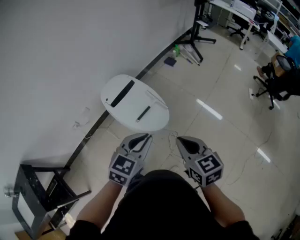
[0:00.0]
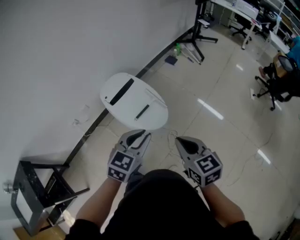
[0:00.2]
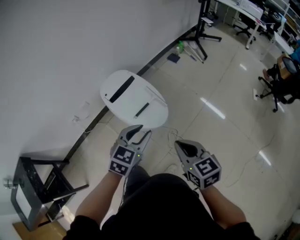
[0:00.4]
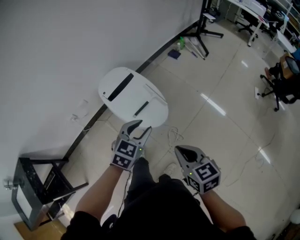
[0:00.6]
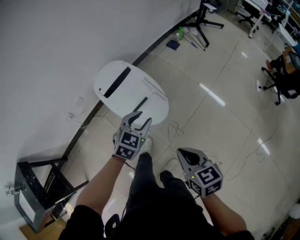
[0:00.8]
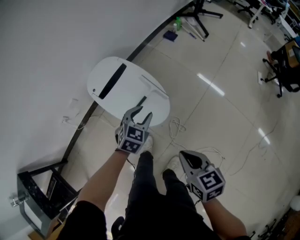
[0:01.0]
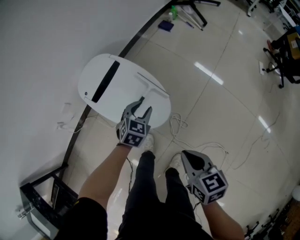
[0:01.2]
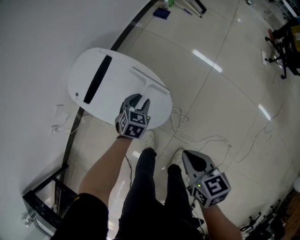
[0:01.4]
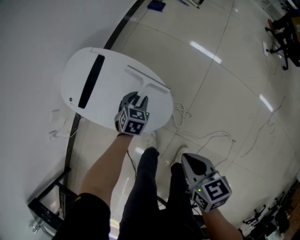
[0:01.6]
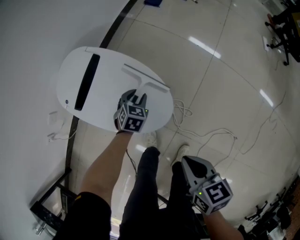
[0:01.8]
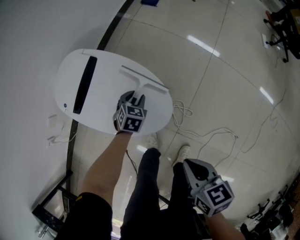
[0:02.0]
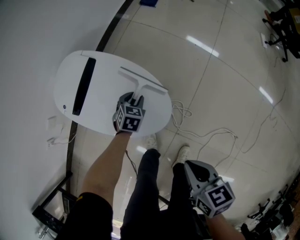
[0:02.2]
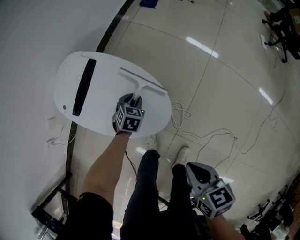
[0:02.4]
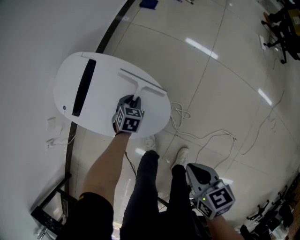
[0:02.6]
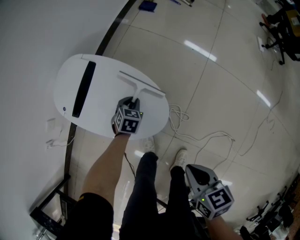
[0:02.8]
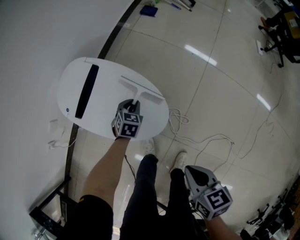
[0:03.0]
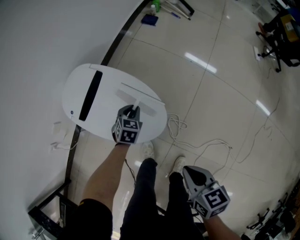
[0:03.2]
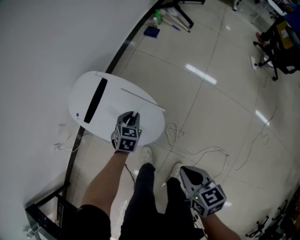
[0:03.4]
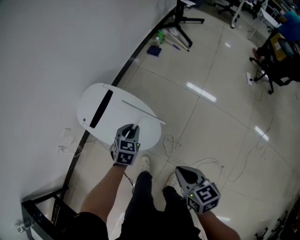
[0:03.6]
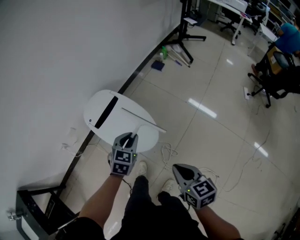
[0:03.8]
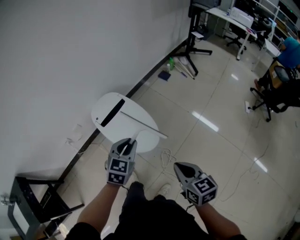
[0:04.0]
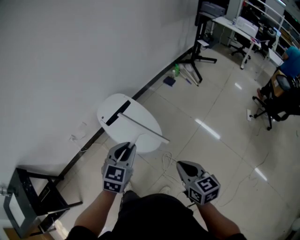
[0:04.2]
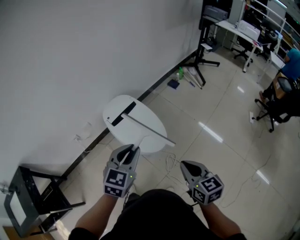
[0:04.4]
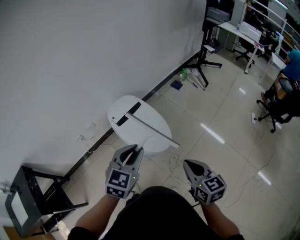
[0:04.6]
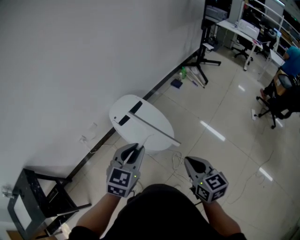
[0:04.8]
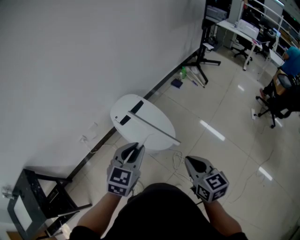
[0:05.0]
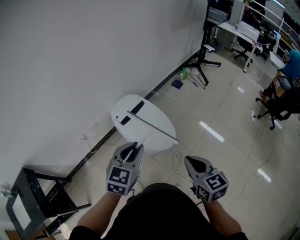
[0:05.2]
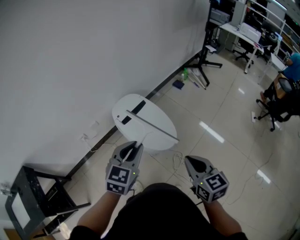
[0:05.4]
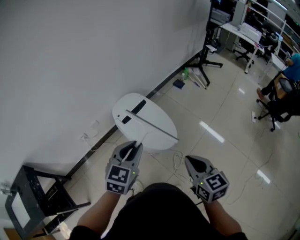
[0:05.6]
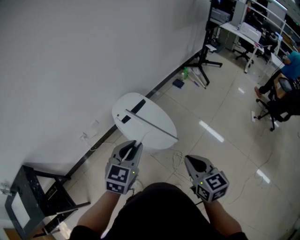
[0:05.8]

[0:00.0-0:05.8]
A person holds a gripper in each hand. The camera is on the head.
0:00.0 to 0:01.4: The left gripper goes some 50 cm downward and forward, rotates some 20 degrees, and opens up; the right gripper moves downward and forward, about 25 cm, and changes its angle by some 30 degrees.
0:01.4 to 0:02.8: The left gripper goes about 10 cm downward, while the right gripper heads downward, covering about 5 cm.
0:02.8 to 0:04.4: The left gripper goes approximately 60 cm upward and backward, and tips its fingers upward by approximately 30 degrees. The right gripper travels upward by approximately 25 cm, and changes its angle by roughly 30 degrees.
0:04.4 to 0:05.8: The two grippers go roughly 10 cm to the left.

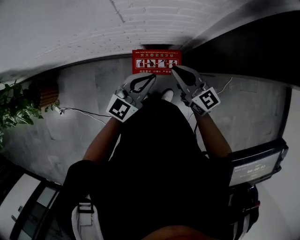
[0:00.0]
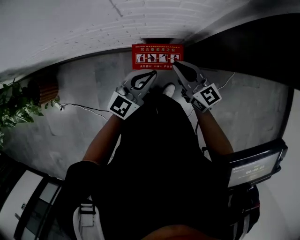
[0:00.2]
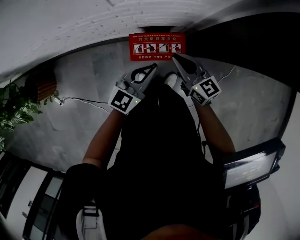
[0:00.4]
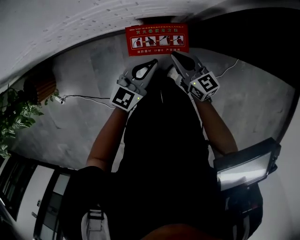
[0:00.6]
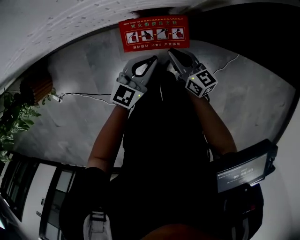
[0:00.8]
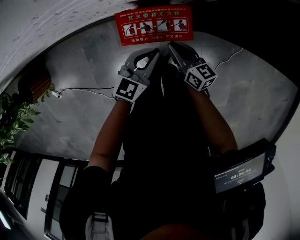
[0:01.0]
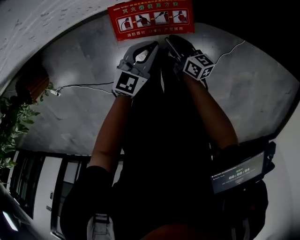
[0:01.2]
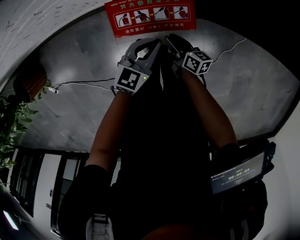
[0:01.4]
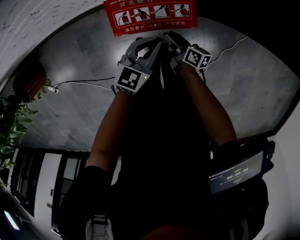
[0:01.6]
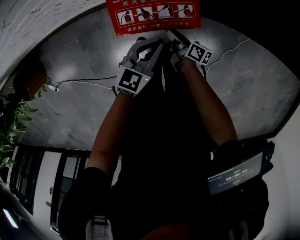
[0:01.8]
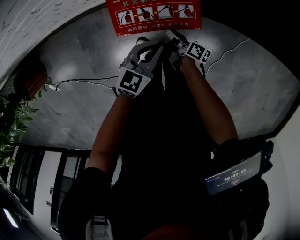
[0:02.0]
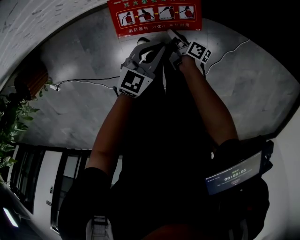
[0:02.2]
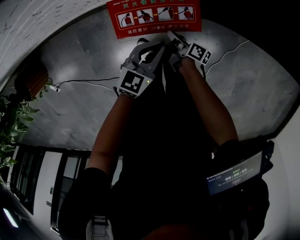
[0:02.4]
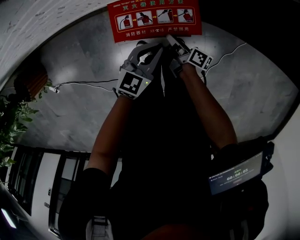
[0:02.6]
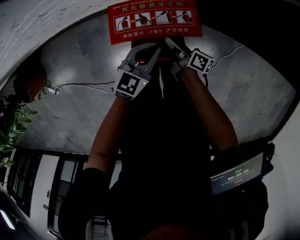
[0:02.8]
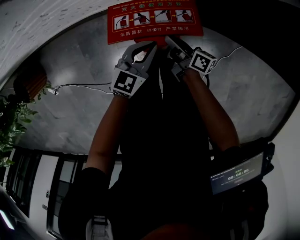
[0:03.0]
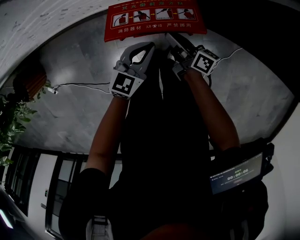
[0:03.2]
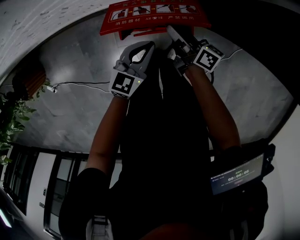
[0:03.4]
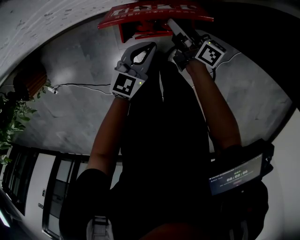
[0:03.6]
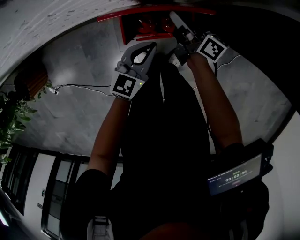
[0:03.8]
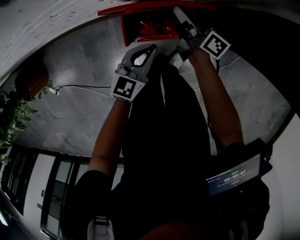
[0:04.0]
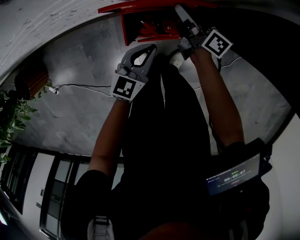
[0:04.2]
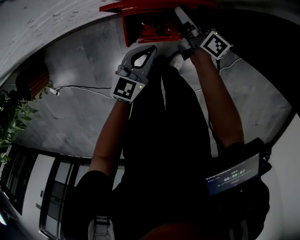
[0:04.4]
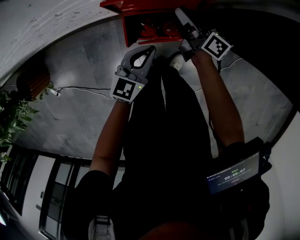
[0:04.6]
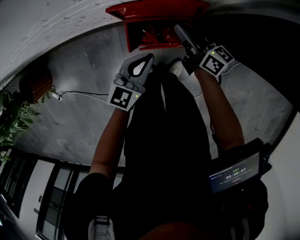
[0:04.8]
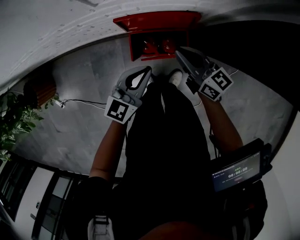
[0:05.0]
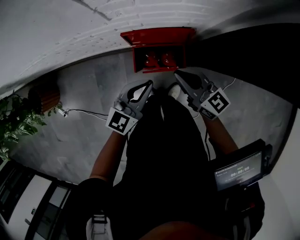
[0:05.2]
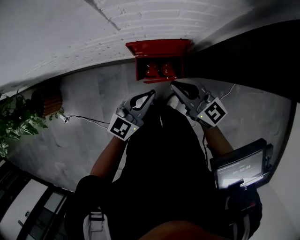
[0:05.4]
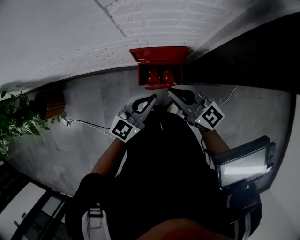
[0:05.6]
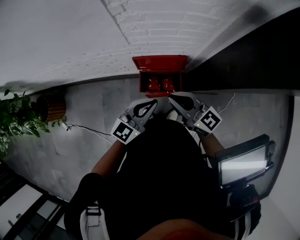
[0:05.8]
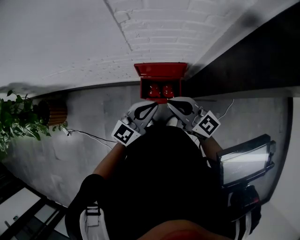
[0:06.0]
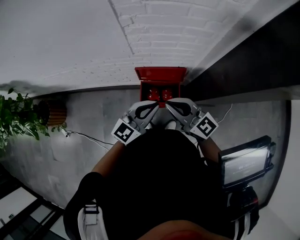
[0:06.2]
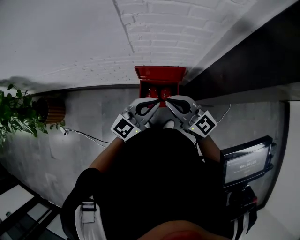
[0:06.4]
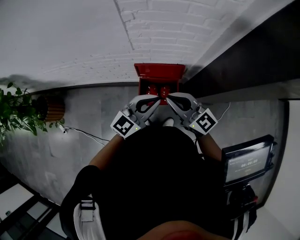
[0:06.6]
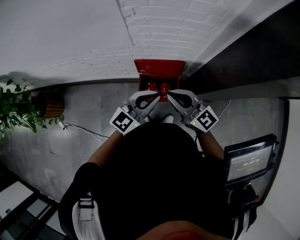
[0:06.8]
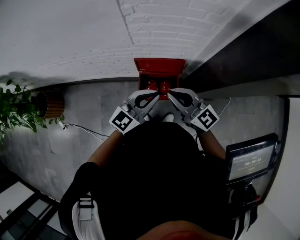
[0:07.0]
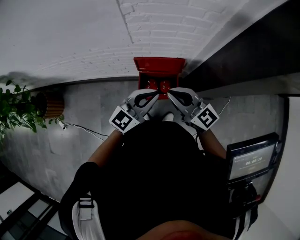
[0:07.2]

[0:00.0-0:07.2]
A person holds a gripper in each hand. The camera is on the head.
0:00.0 to 0:01.4: The grippers both shift downward by about 40 cm. The right gripper rotates around the line of its fingers by approximately 40 degrees, clockwise from behind, and opens up.
0:01.4 to 0:02.8: The right gripper travels downward and back again, some 5 cm each way, and turns by roughly 20 degrees.
0:02.8 to 0:04.4: The right gripper shifts approximately 20 cm forward and upward, swivels some 20 degrees, and opens its fingers. The left gripper moves some 5 cm.
0:04.4 to 0:05.8: The left gripper goes roughly 35 cm upward; the right gripper shifts roughly 40 cm upward and backward, twists roughly 50 degrees counterclockwise, seen from behind, and closes.
0:05.8 to 0:07.2: The grippers stay close to where they were, moving slightly.

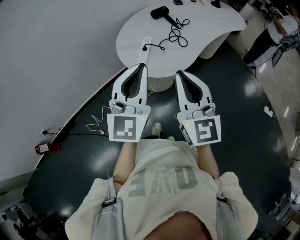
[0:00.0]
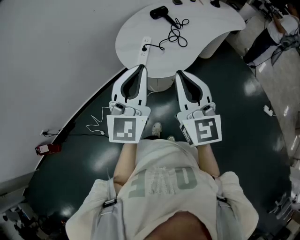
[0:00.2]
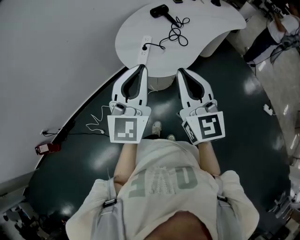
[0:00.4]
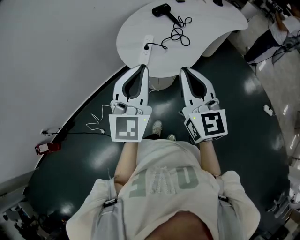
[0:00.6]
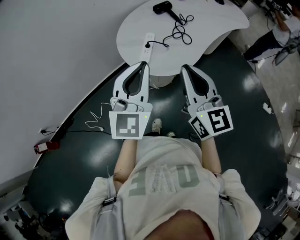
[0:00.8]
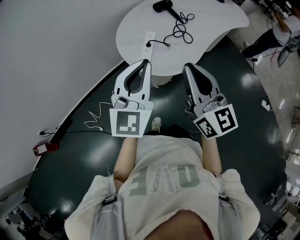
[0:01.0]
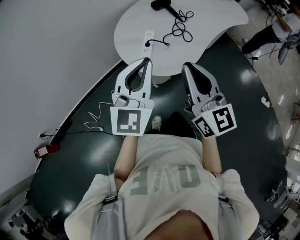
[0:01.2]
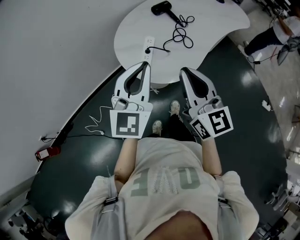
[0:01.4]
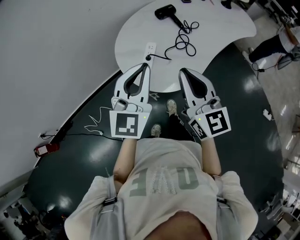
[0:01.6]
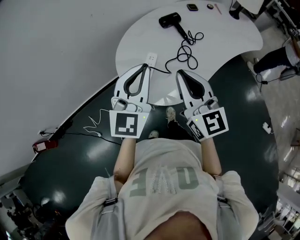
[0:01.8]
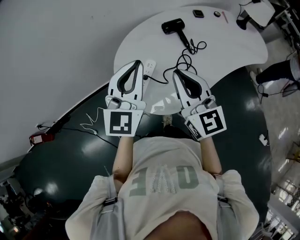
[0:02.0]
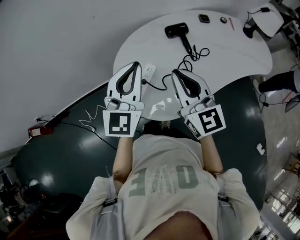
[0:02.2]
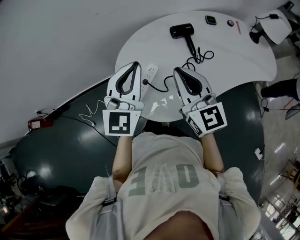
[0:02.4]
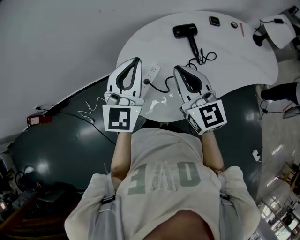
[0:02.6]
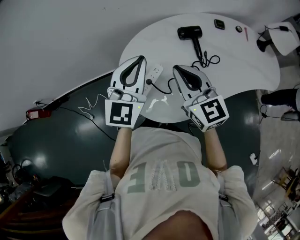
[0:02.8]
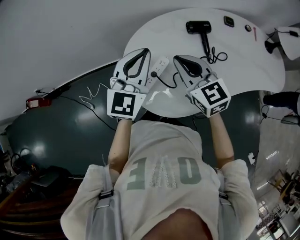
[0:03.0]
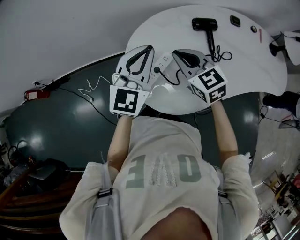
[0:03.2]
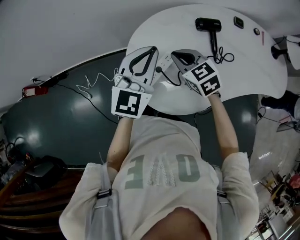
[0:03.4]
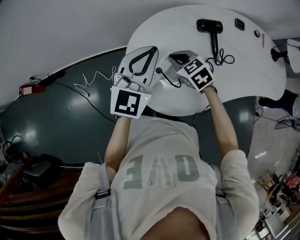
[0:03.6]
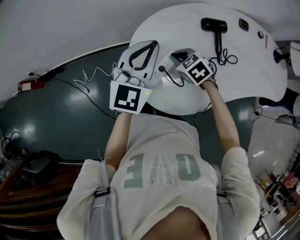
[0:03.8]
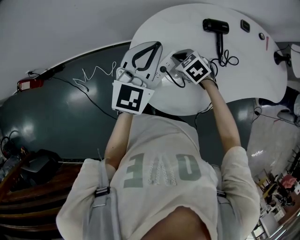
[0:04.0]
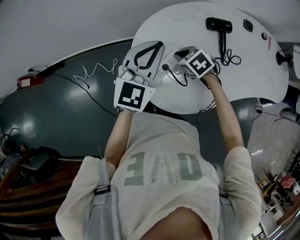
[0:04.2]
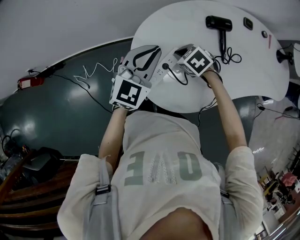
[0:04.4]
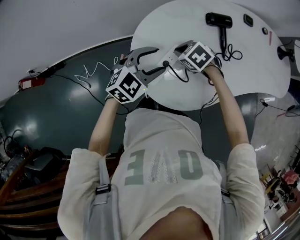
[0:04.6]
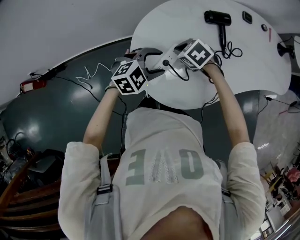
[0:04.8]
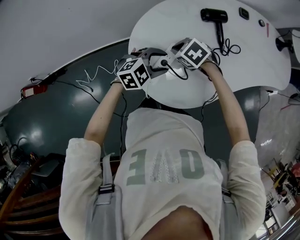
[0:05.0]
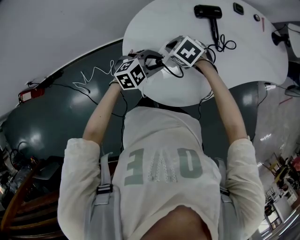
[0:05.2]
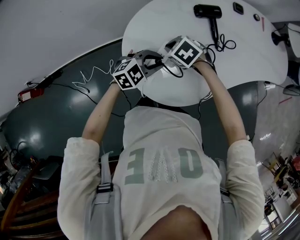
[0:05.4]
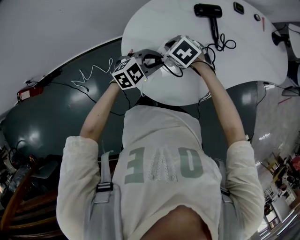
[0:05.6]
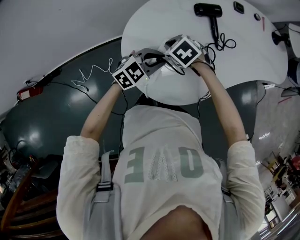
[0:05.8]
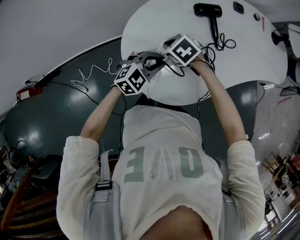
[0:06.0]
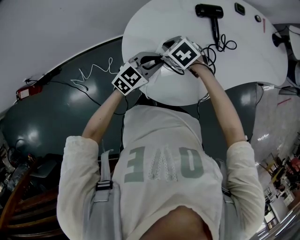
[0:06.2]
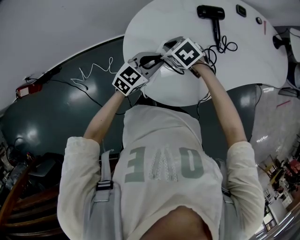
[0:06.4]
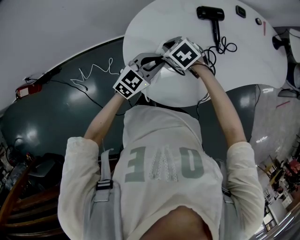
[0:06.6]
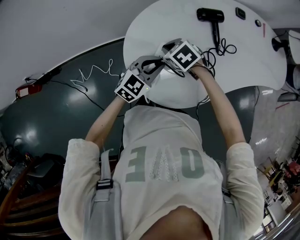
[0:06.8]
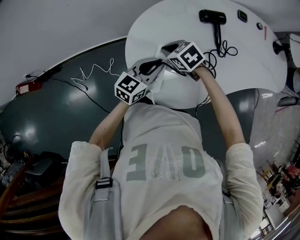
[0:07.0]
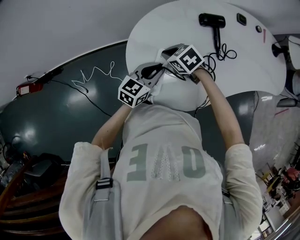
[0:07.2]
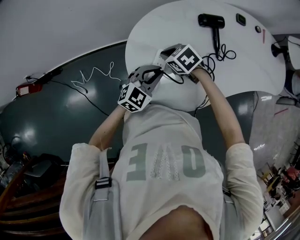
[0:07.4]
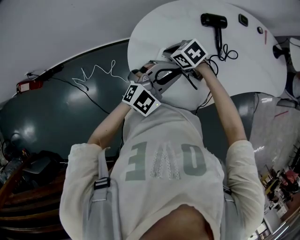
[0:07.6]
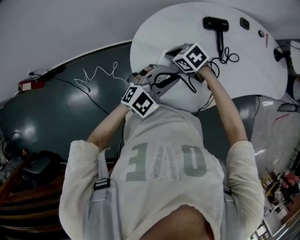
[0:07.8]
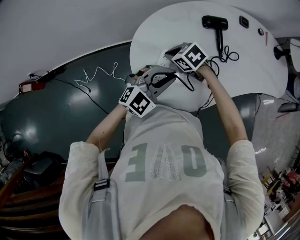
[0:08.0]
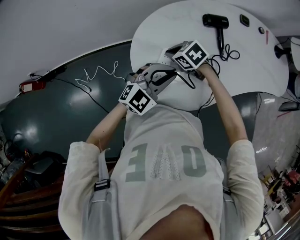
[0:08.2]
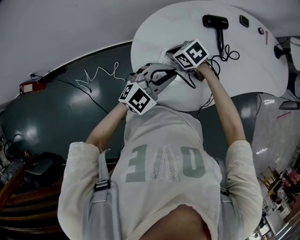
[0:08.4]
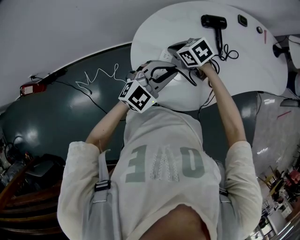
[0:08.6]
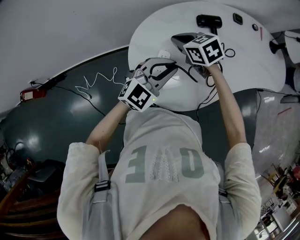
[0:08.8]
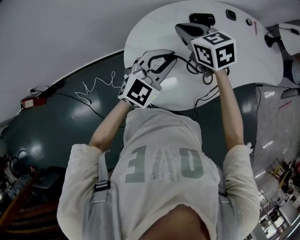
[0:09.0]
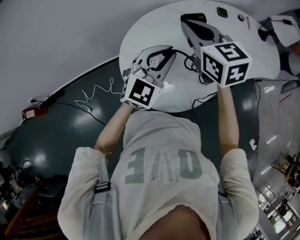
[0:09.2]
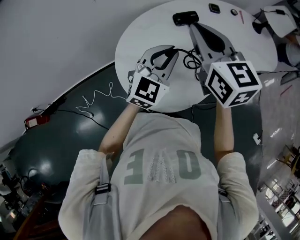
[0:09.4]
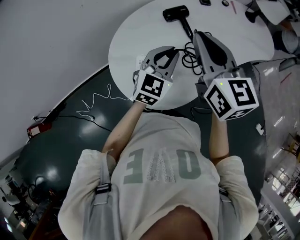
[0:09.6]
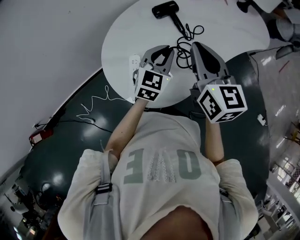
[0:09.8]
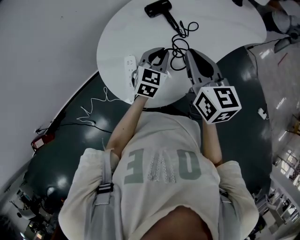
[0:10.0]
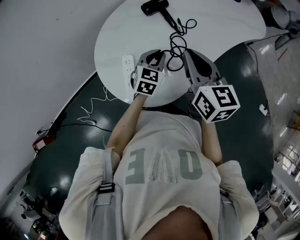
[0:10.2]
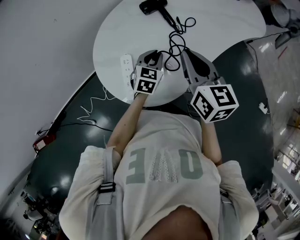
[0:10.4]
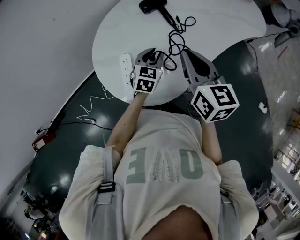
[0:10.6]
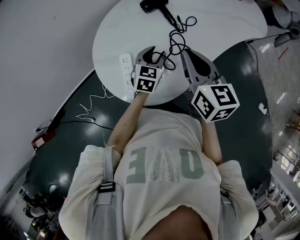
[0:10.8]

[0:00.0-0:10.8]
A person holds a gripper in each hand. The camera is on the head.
0:00.0 to 0:01.6: The two grippers go approximately 15 cm forward.
0:01.6 to 0:03.0: The left gripper ends up roughly 20 cm from where it was, while the right gripper moves roughly 25 cm, and swivels roughly 40 degrees.
0:03.0 to 0:04.6: The two grippers go some 20 cm downward. The left gripper turns by about 40 degrees, and opens its fingers. The right gripper points its fingers roughly 50 degrees further downward.
0:04.6 to 0:06.2: The left gripper shifts approximately 5 cm downward, and closes.
0:06.2 to 0:07.8: The left gripper moves upward, about 10 cm, and swivels approximately 30 degrees.
0:07.8 to 0:09.2: The right gripper is displaced upward by about 25 cm, and tips its fingers upward by approximately 30 degrees. The left gripper travels upward by about 10 cm.
0:09.2 to 0:10.8: The right gripper moves to the right, backward and downward, roughly 20 cm, and swivels some 30 degrees. Meanwhile the left gripper travels downward and to the right by roughly 20 cm, swivels approximately 30 degrees, and opens its fingers.
